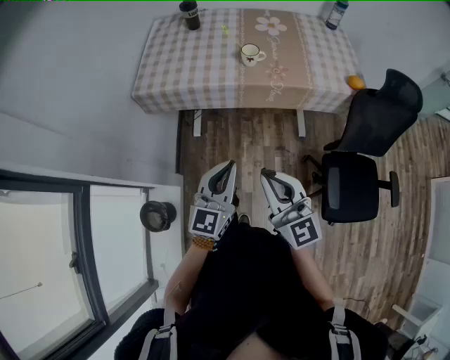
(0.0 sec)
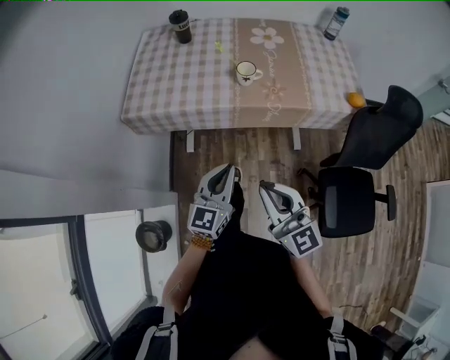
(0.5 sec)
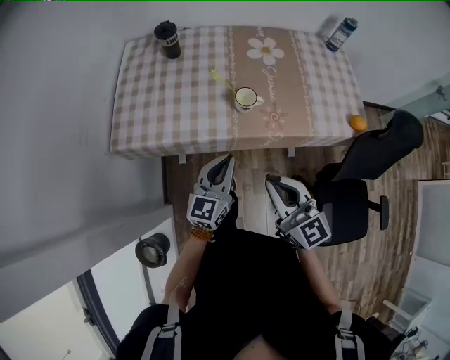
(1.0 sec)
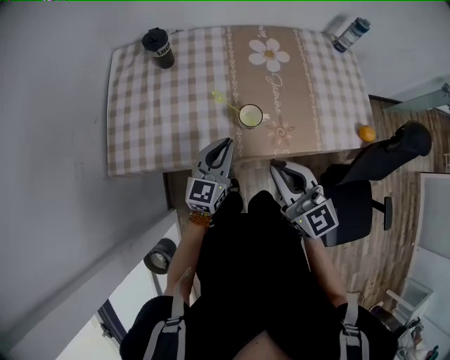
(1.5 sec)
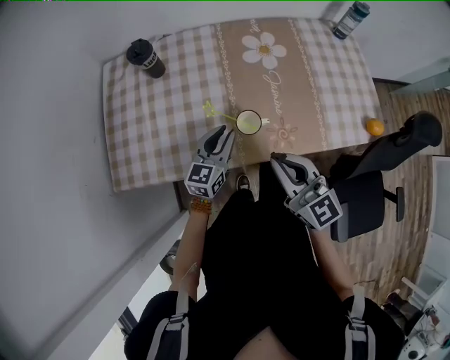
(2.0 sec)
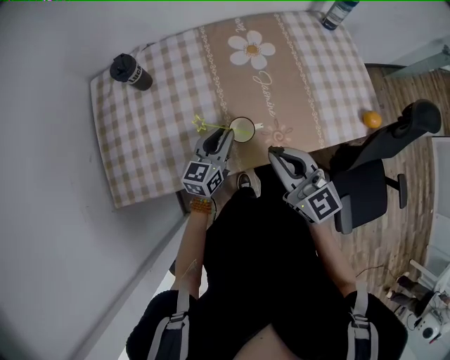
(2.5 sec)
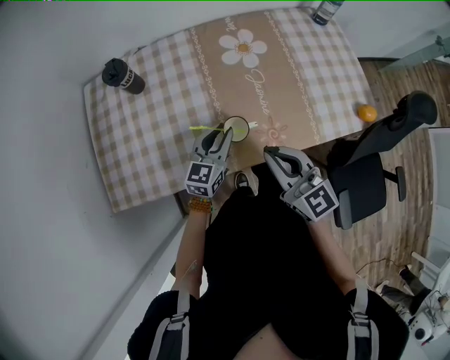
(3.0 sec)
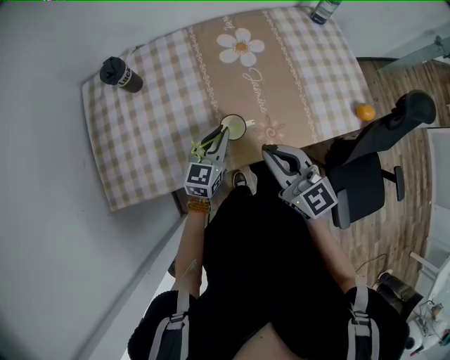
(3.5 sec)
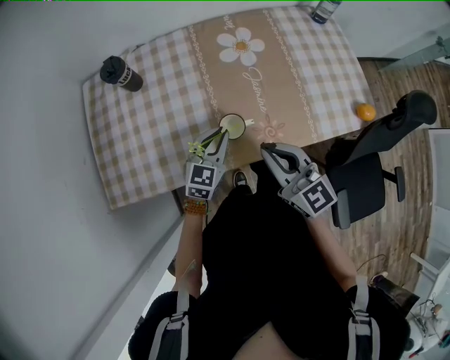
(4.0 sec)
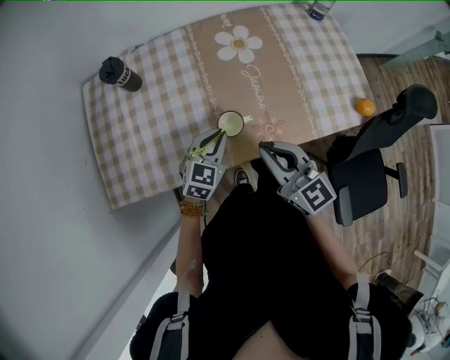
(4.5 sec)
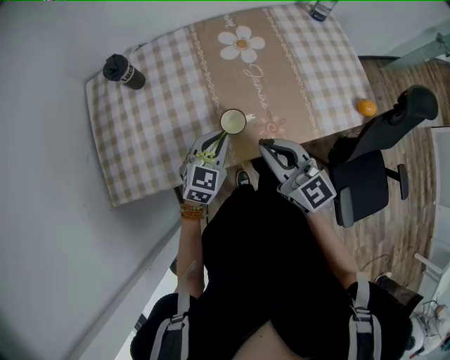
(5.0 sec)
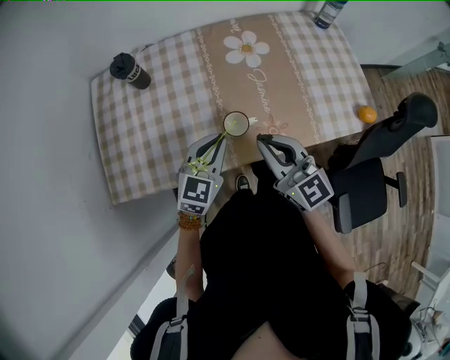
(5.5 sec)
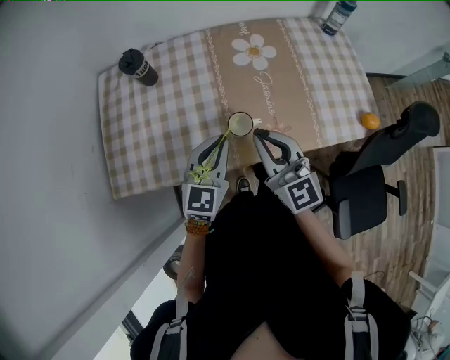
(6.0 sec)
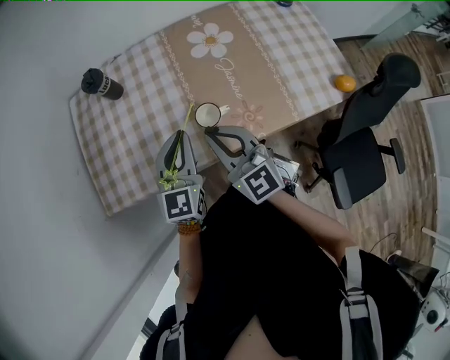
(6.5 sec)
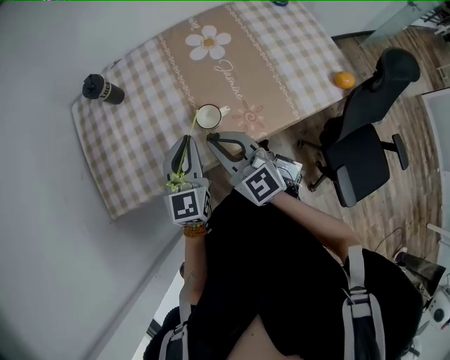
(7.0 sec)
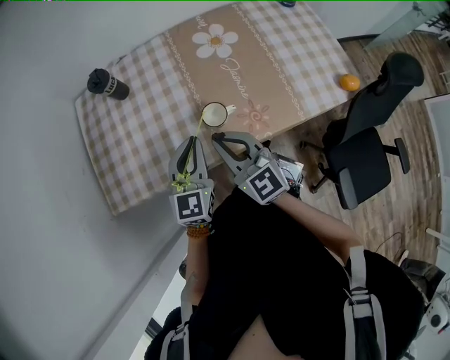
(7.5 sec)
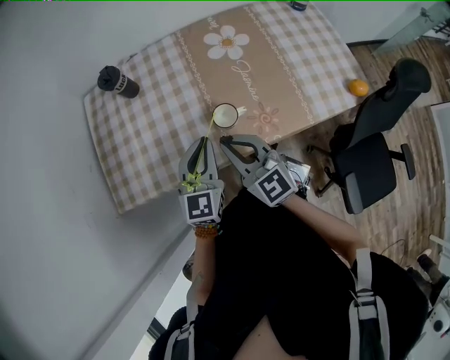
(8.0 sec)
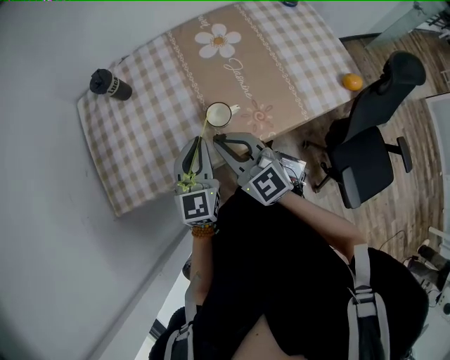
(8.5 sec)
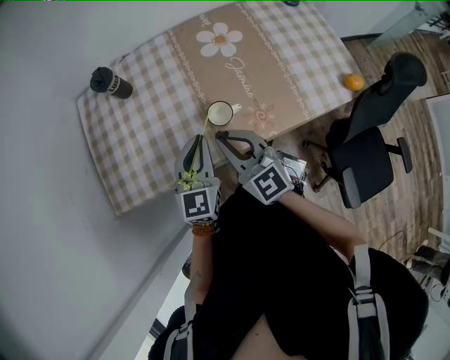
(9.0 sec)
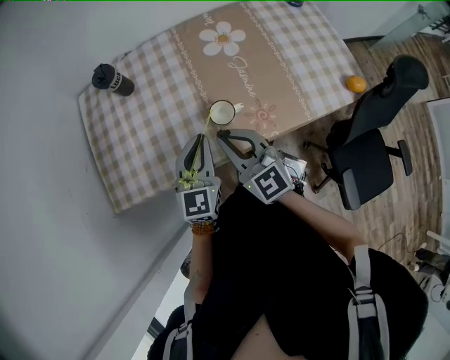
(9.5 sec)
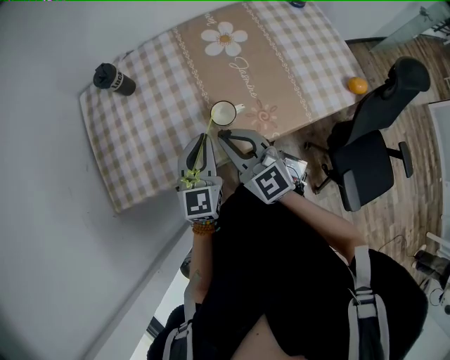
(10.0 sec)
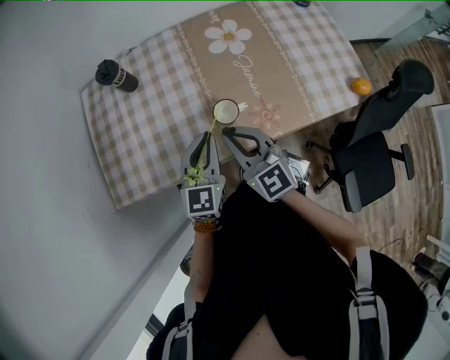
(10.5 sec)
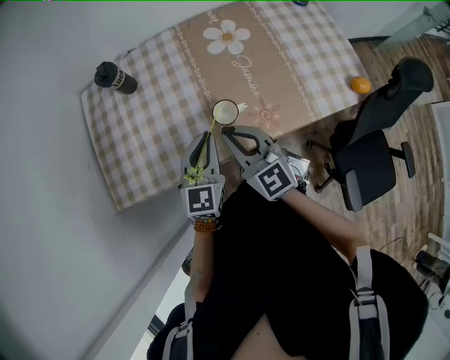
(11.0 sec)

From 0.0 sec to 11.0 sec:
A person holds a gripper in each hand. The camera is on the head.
From 0.0 sec to 2.0 sec: The two grippers travel together, forward, about 50 cm. The left gripper rotates about 20 degrees, and opens up.
From 2.0 sec to 3.5 sec: The grippers stay close to where they were, moving slightly.
From 3.5 sec to 5.5 sec: The left gripper moves upward, some 5 cm.
From 5.5 sec to 7.5 sec: The right gripper is displaced to the left by some 5 cm.
From 7.5 sec to 9.0 sec: Both grippers stay put.
From 9.0 sec to 11.0 sec: The grippers move only a little.

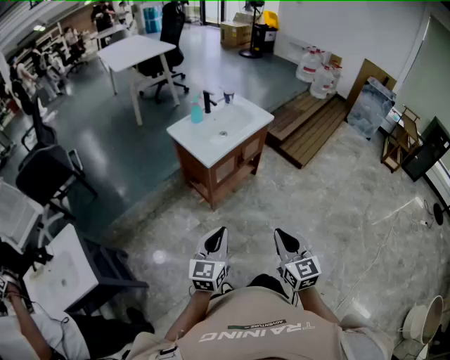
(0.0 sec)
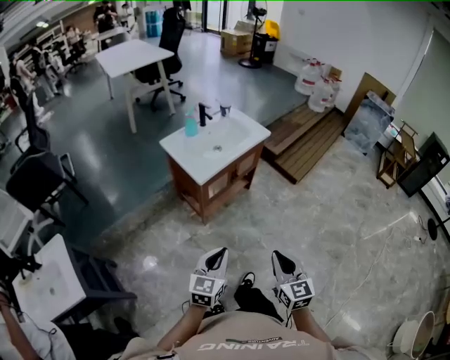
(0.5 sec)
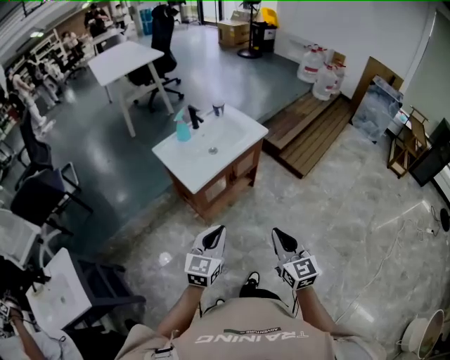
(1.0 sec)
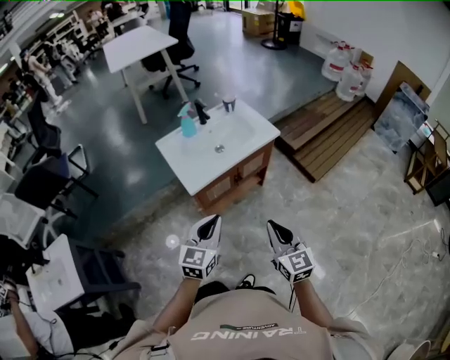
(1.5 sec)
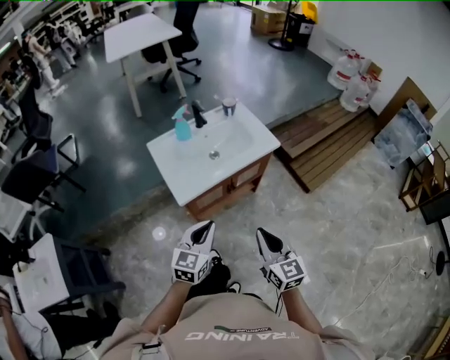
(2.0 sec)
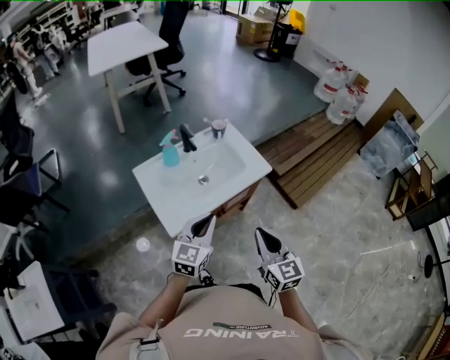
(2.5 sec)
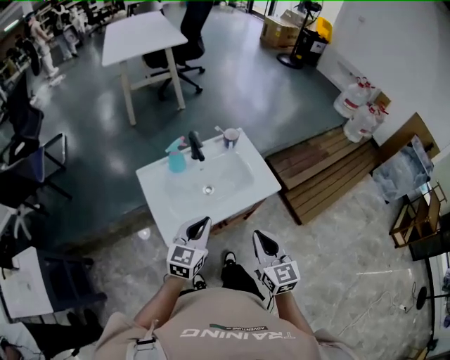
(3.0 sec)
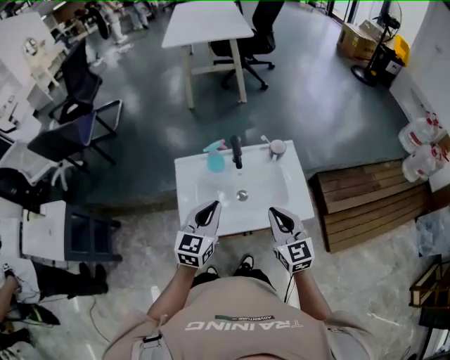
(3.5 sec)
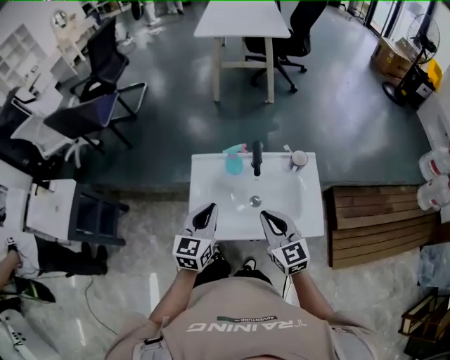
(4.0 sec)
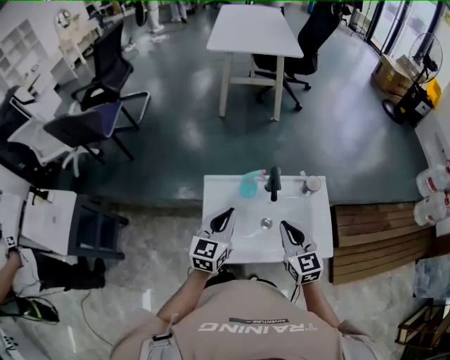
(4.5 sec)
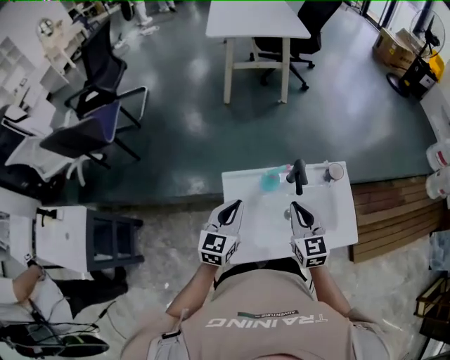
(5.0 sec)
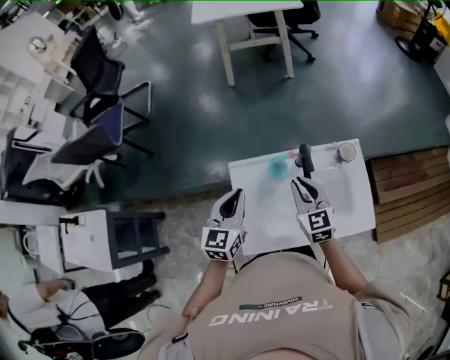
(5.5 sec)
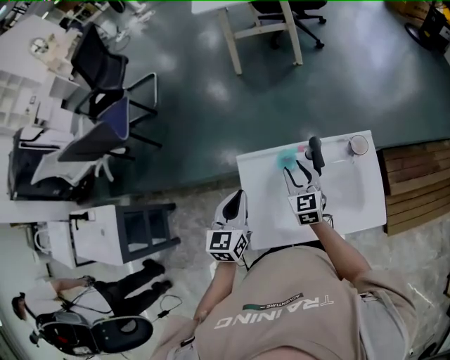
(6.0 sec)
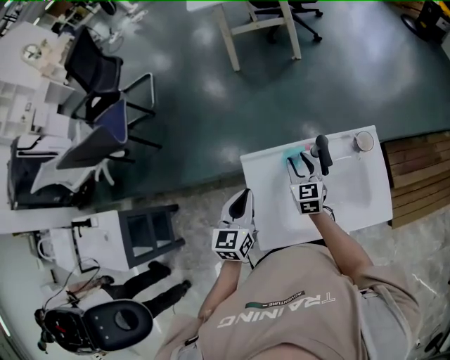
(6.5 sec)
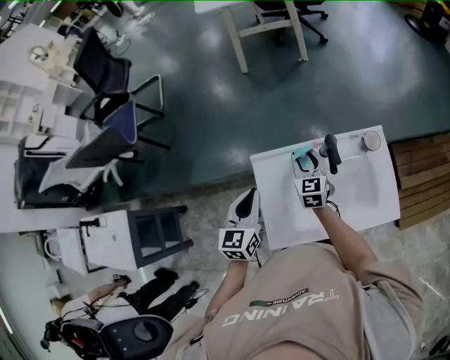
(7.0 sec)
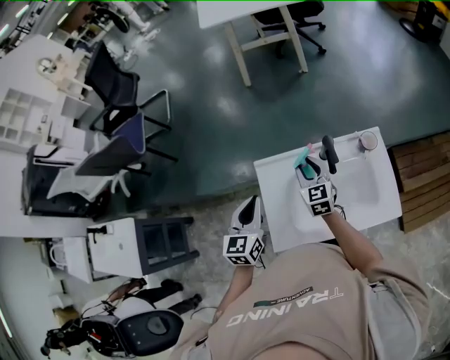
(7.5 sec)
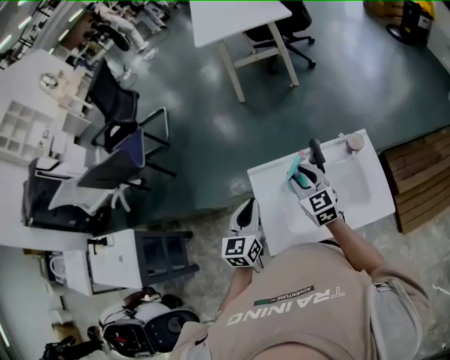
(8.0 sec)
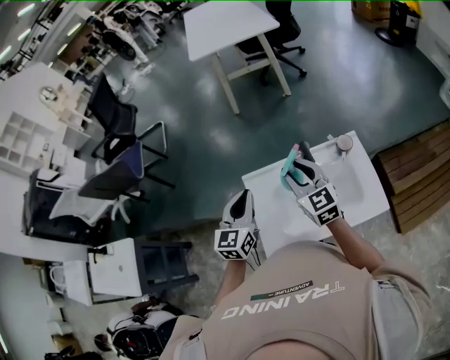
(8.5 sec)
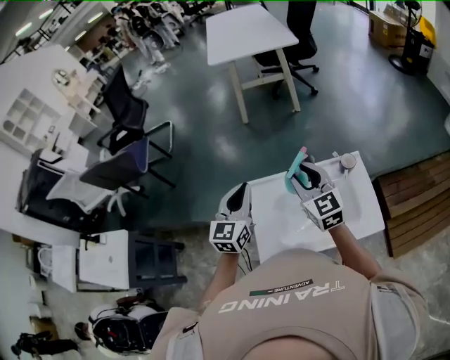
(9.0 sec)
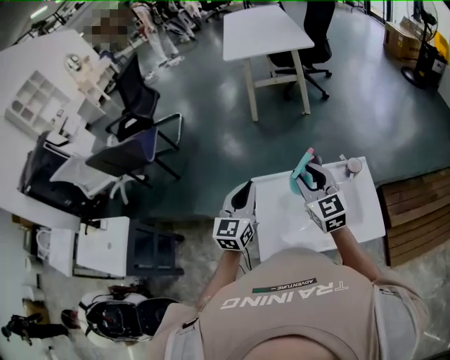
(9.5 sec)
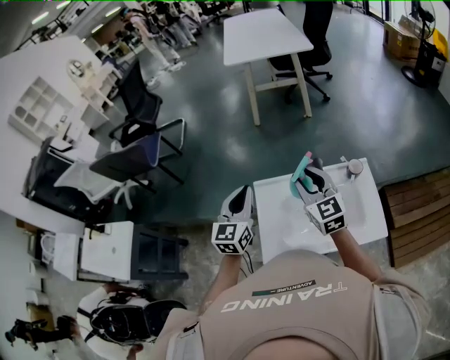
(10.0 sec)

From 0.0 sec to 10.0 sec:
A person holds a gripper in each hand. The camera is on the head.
From 0.0 sec to 2.0 sec: The two grippers go roughly 30 cm forward.
From 2.0 sec to 4.0 sec: The right gripper shifts by some 35 cm, and rotates about 40 degrees. The left gripper moves approximately 30 cm, and turns by roughly 40 degrees.
From 4.0 sec to 6.0 sec: The right gripper shifts roughly 25 cm forward, downward and to the left, and opens up. The left gripper is displaced forward and to the left by some 15 cm.
From 6.0 sec to 8.0 sec: The right gripper goes some 10 cm upward.
From 8.0 sec to 10.0 sec: The grippers both shift upward by about 10 cm.

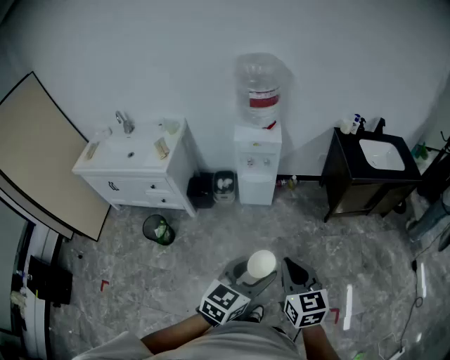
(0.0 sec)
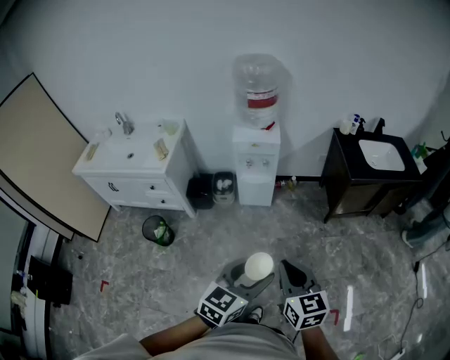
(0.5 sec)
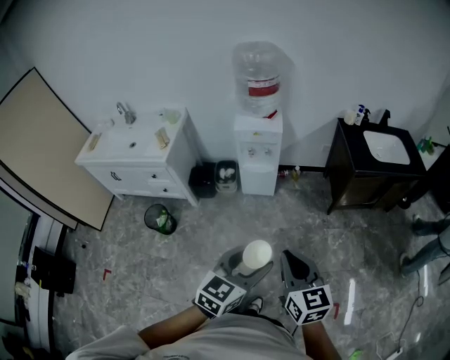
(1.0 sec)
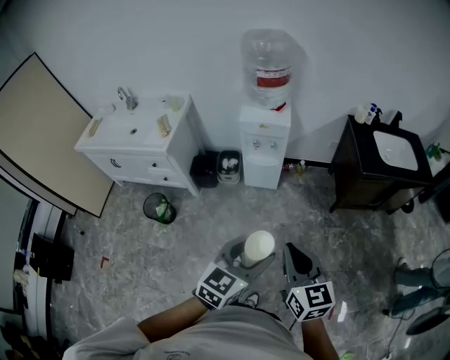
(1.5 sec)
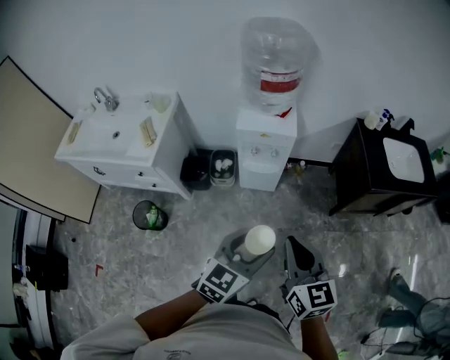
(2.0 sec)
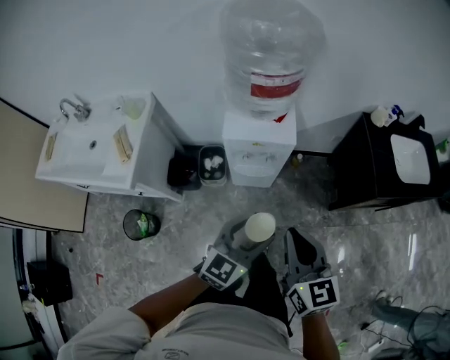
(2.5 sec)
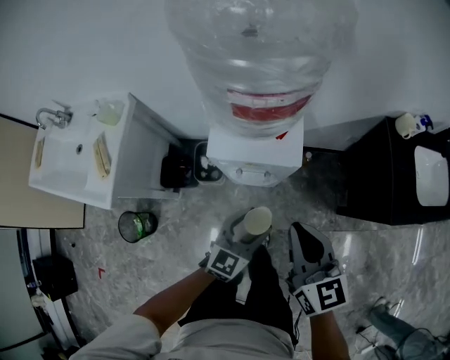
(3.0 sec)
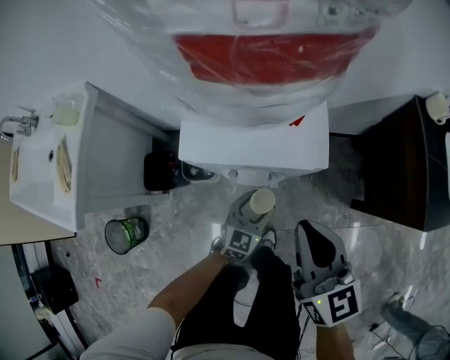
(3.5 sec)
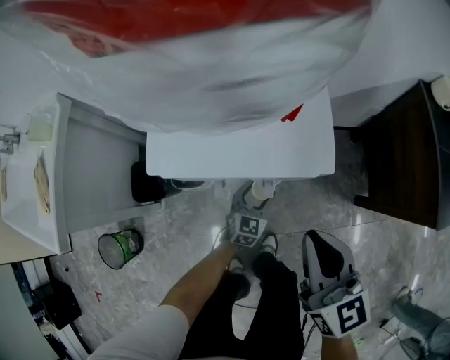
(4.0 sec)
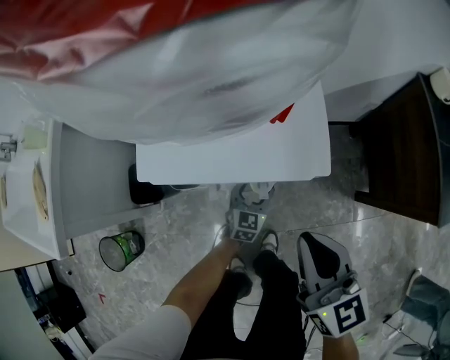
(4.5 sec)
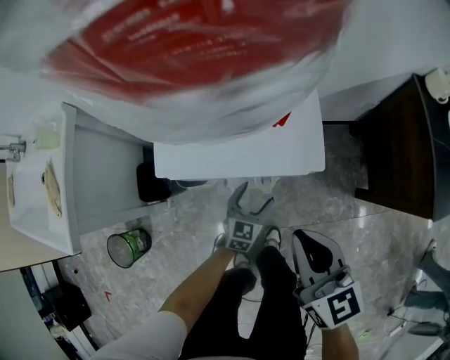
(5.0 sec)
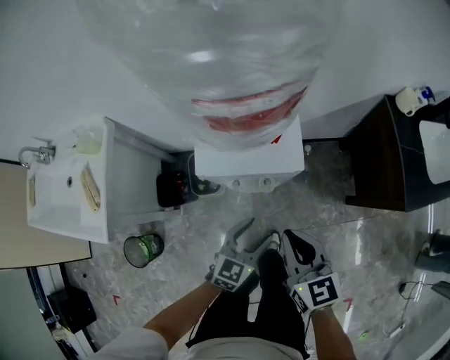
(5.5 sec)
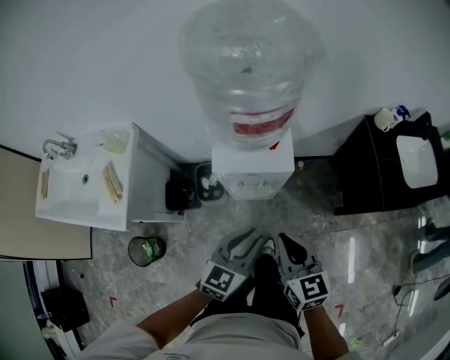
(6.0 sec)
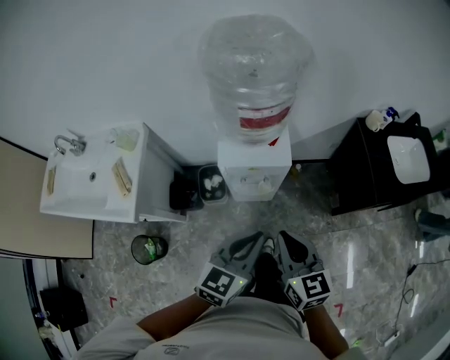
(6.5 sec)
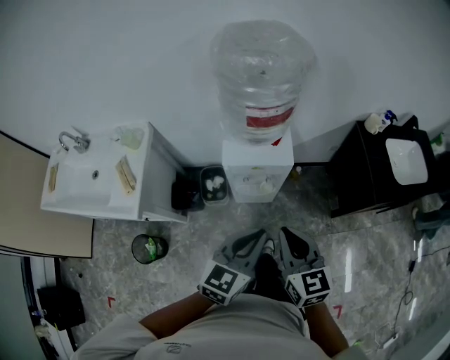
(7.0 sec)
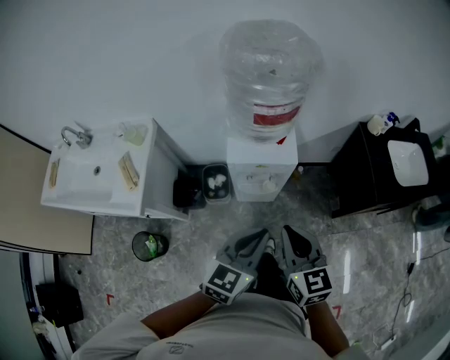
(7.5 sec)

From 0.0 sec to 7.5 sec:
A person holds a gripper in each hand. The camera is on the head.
From 0.0 sec to 2.0 sec: The grippers both shift forward by roughly 25 cm.
From 2.0 sec to 4.0 sec: The two grippers travel together, forward, roughly 40 cm. The left gripper is displaced downward by roughly 60 cm. Meanwhile the right gripper is displaced downward by about 30 cm.
From 4.0 sec to 5.5 sec: The right gripper is displaced upward by about 10 cm. The left gripper is displaced upward and backward by roughly 30 cm.
From 5.5 sec to 7.5 sec: The grippers both shift upward and backward by some 25 cm. The left gripper closes.
